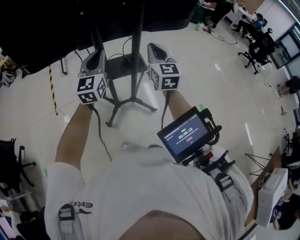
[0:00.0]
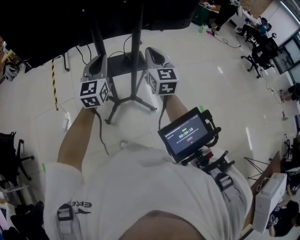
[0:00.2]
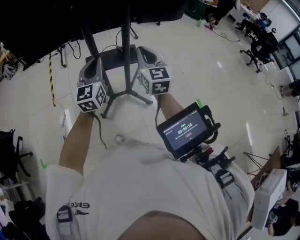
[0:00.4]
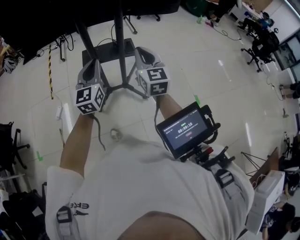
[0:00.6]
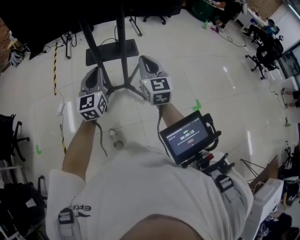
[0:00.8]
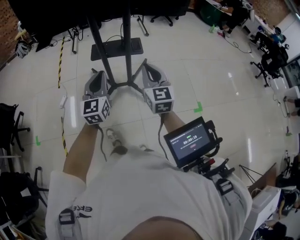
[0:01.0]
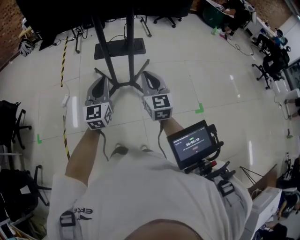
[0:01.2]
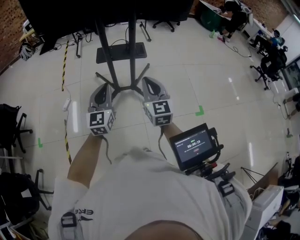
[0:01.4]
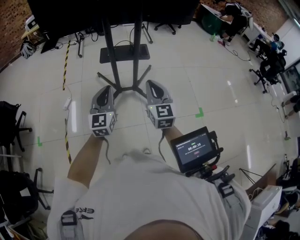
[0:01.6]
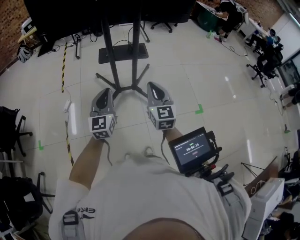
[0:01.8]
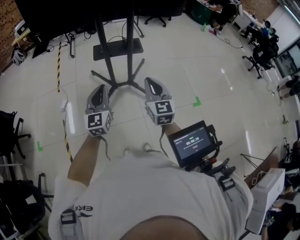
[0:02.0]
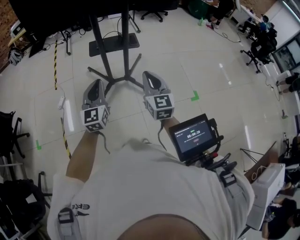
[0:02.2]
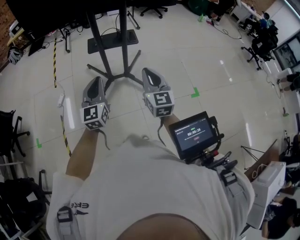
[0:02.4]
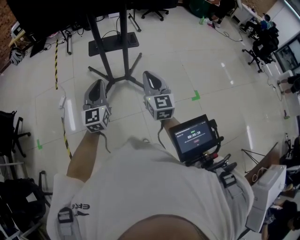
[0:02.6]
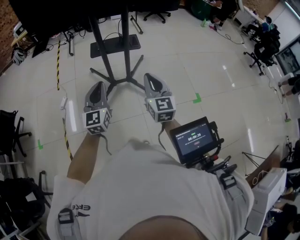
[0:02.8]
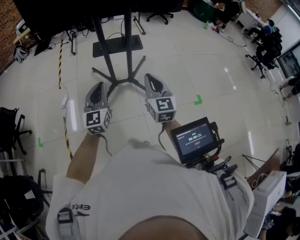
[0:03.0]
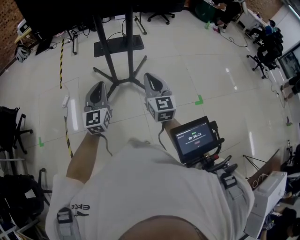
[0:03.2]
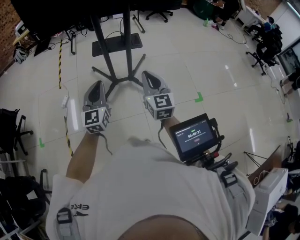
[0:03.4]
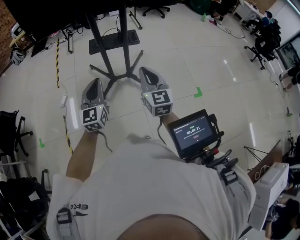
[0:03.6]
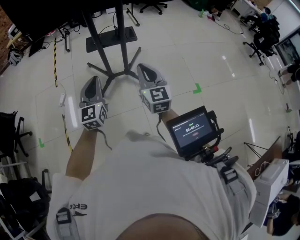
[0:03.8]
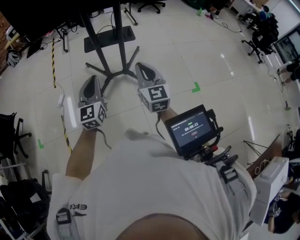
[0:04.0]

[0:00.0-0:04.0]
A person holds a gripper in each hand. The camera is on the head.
0:00.0 to 0:01.4: Both grippers move backward, some 25 cm.
0:01.4 to 0:02.6: Both grippers travel together backward, some 5 cm.
0:02.6 to 0:04.0: There are only small adjustments of the grippers.

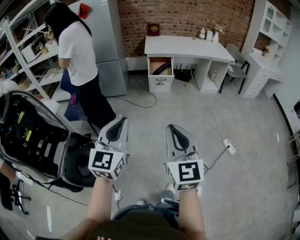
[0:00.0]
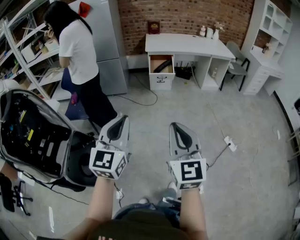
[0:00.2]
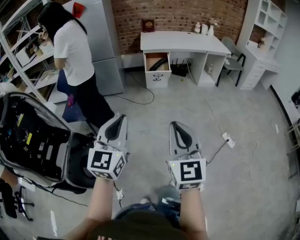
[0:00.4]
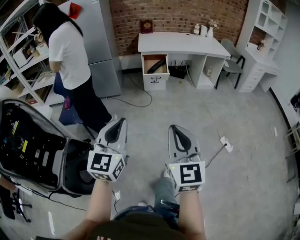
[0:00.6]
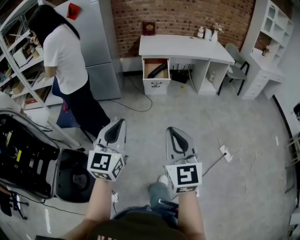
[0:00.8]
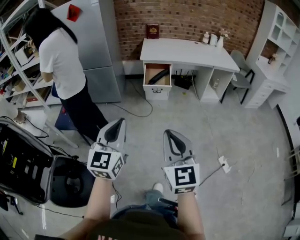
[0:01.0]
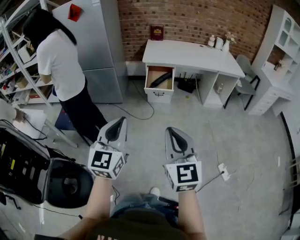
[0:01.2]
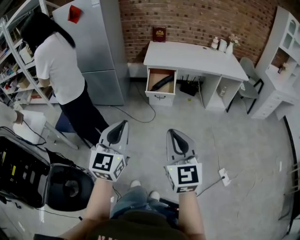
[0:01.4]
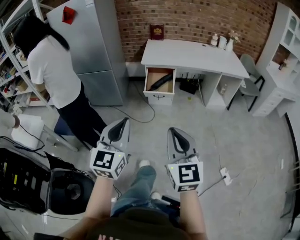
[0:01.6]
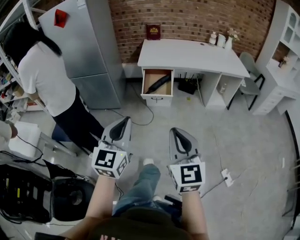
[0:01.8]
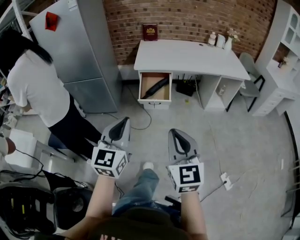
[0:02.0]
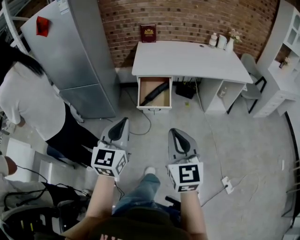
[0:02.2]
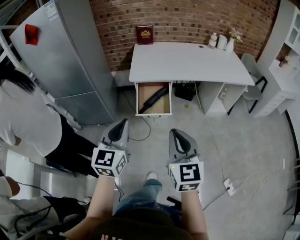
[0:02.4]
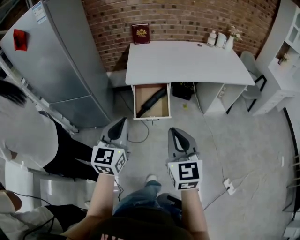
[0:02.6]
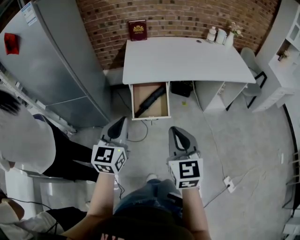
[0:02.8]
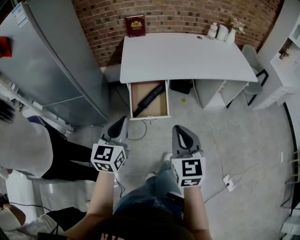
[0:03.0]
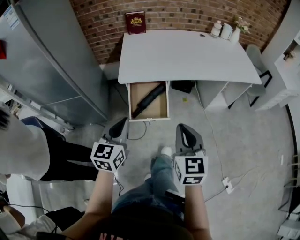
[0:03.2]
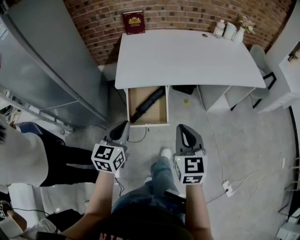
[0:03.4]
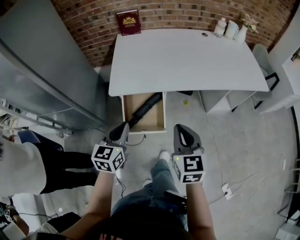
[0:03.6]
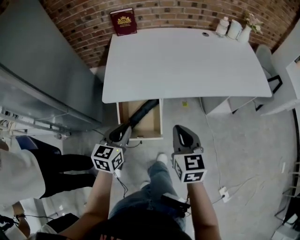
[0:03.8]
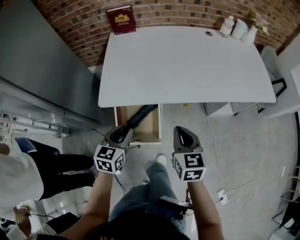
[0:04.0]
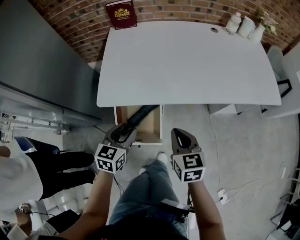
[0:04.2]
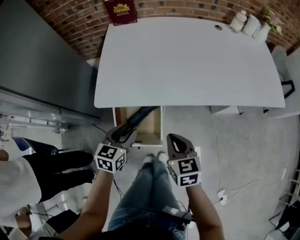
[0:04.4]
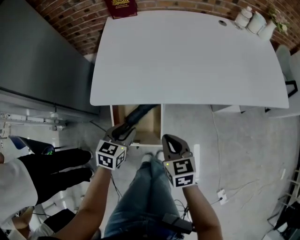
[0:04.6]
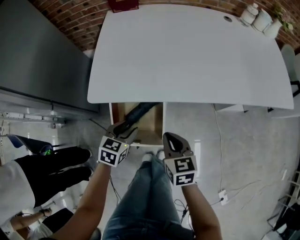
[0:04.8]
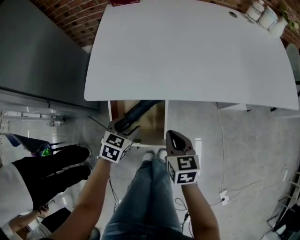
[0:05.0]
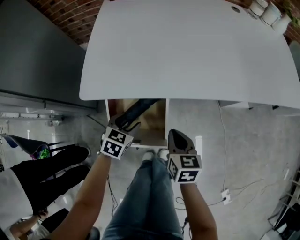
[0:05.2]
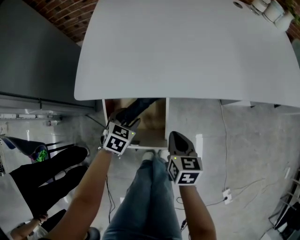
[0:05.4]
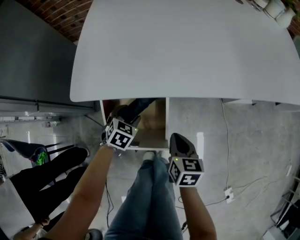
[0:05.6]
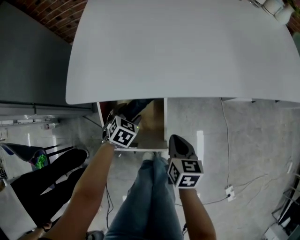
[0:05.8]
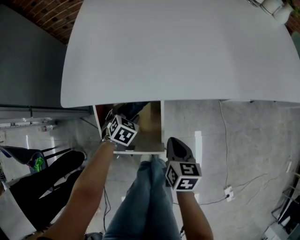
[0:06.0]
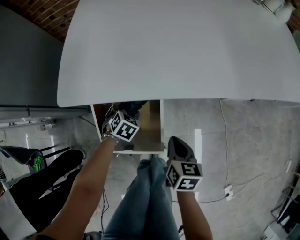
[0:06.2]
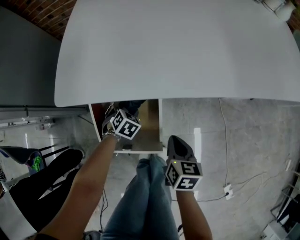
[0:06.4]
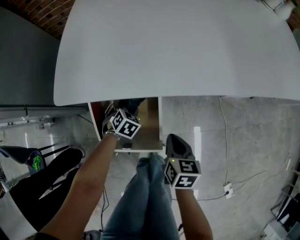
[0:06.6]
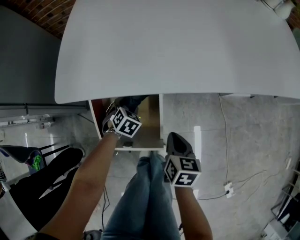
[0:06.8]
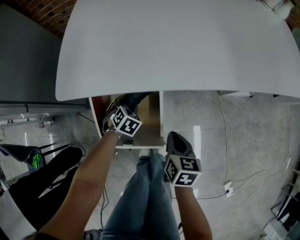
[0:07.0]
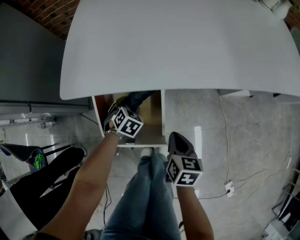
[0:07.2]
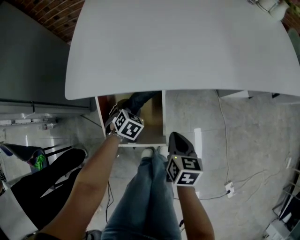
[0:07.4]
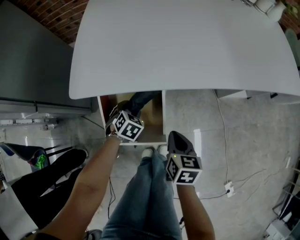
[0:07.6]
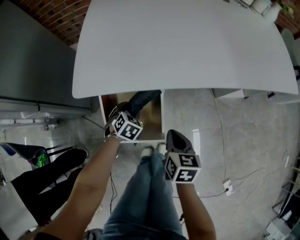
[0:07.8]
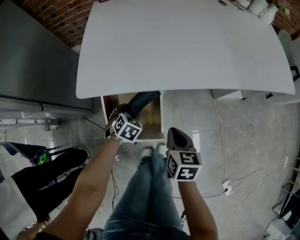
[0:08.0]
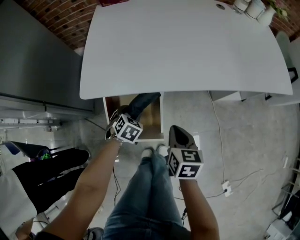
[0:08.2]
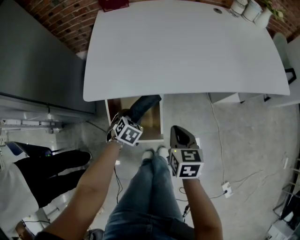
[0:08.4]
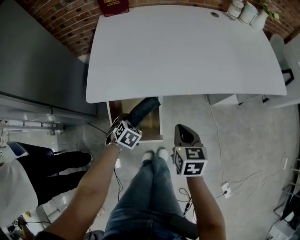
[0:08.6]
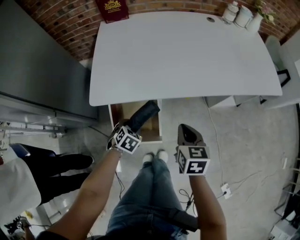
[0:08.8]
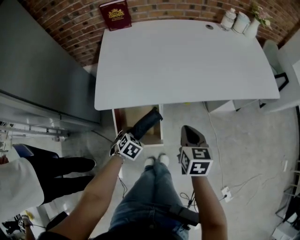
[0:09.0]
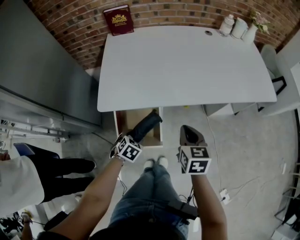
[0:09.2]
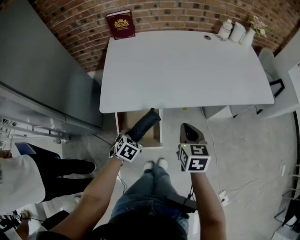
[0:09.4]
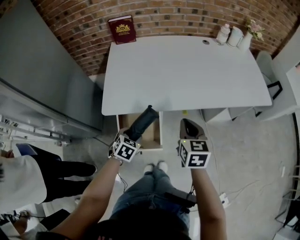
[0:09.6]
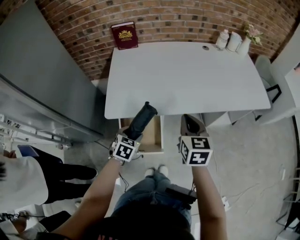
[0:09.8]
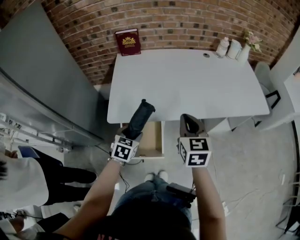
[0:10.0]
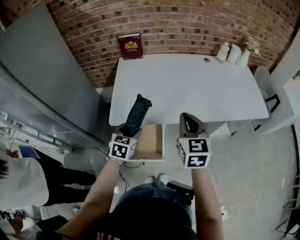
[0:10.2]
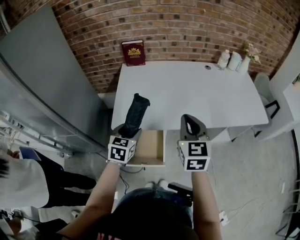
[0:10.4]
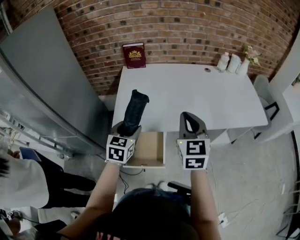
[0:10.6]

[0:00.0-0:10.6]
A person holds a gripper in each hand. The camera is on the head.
0:00.0 to 0:01.6: The two grippers go approximately 30 cm forward.
0:01.6 to 0:03.0: Both grippers are carried forward, some 50 cm.
0:03.0 to 0:04.6: The two grippers go some 40 cm forward and downward. The left gripper swivels some 30 degrees, and opens its fingers; the right gripper changes its angle by approximately 30 degrees.
0:04.6 to 0:06.0: The two grippers go about 20 cm downward. The right gripper swivels about 30 degrees. The left gripper swivels roughly 30 degrees, and opens.
0:06.0 to 0:07.6: The grippers stay close to where they were, moving slightly.
0:07.6 to 0:09.0: The left gripper goes some 15 cm upward and backward. The right gripper travels upward by about 20 cm.
0:09.0 to 0:10.6: Both grippers travel together upward, roughly 25 cm. The left gripper points its fingers about 40 degrees further upward. Meanwhile the right gripper changes its angle by roughly 30 degrees.

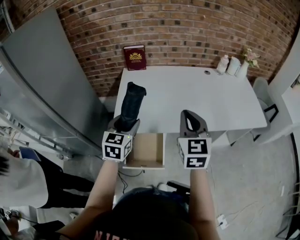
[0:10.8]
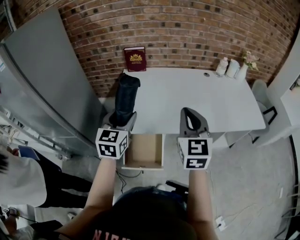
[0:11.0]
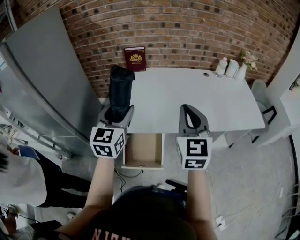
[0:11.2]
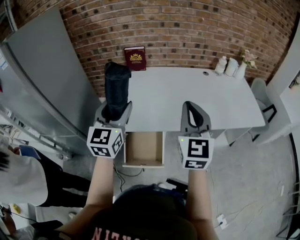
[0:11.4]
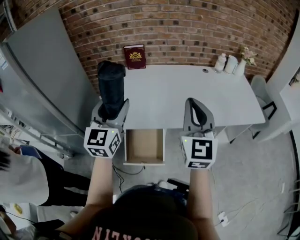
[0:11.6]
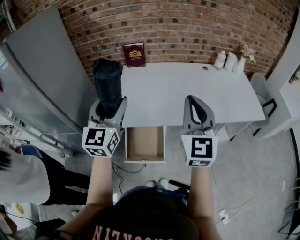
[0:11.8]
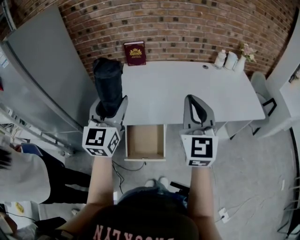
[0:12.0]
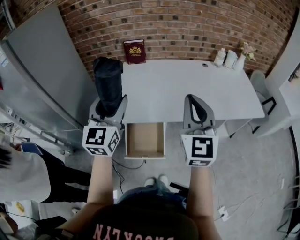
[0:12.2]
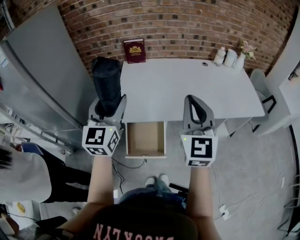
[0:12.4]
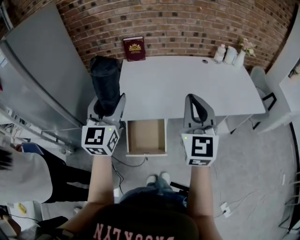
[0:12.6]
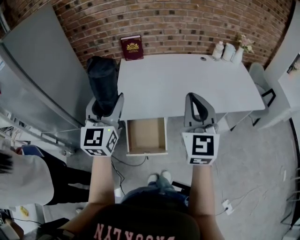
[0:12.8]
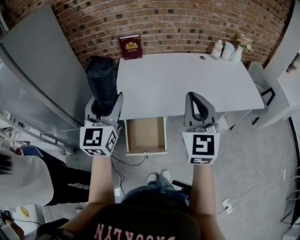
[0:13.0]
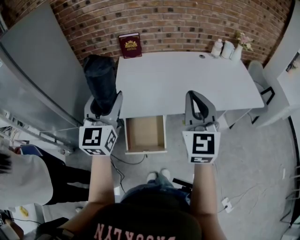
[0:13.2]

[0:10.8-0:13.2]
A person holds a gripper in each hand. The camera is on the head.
0:10.8 to 0:12.0: The right gripper heads upward and backward, covering roughly 10 cm. Meanwhile the left gripper goes about 15 cm upward, and turns by some 30 degrees.
0:12.0 to 0:13.2: The grippers move only a little.

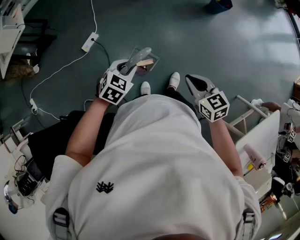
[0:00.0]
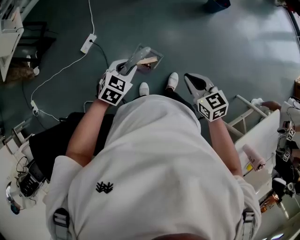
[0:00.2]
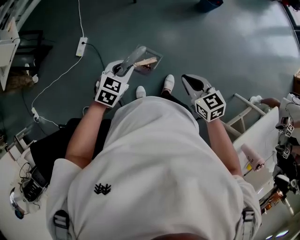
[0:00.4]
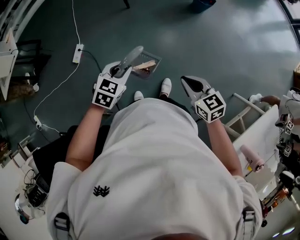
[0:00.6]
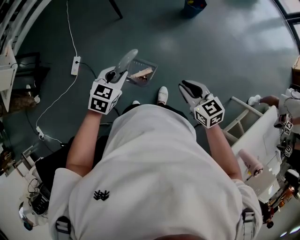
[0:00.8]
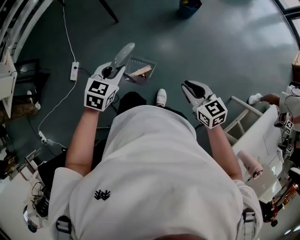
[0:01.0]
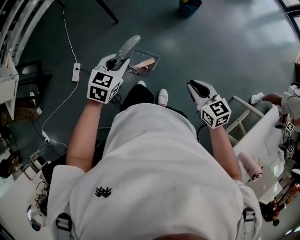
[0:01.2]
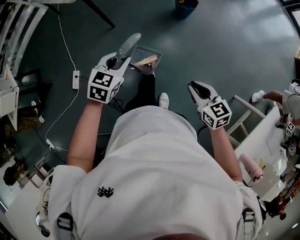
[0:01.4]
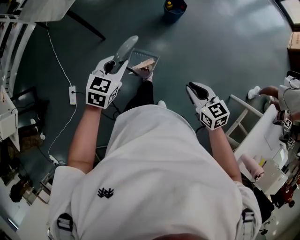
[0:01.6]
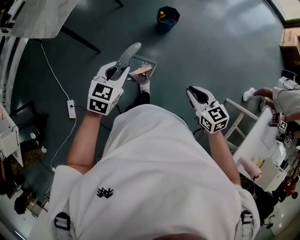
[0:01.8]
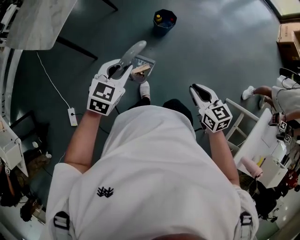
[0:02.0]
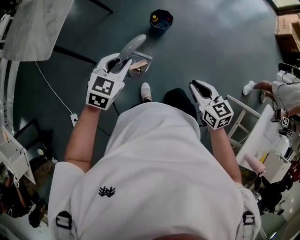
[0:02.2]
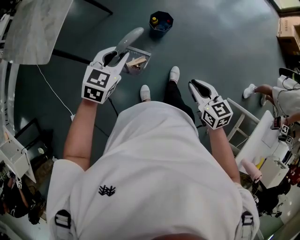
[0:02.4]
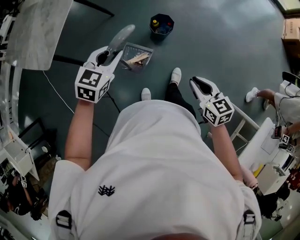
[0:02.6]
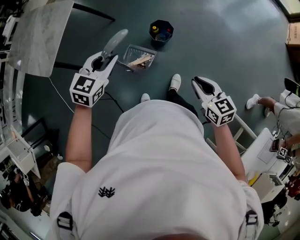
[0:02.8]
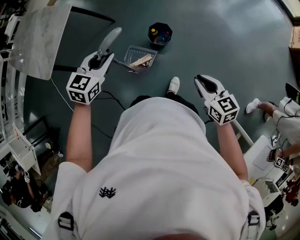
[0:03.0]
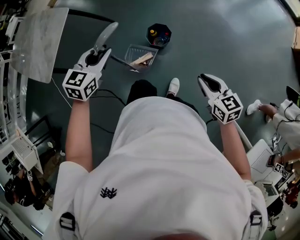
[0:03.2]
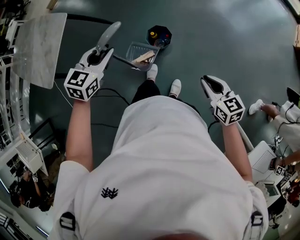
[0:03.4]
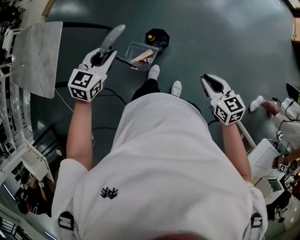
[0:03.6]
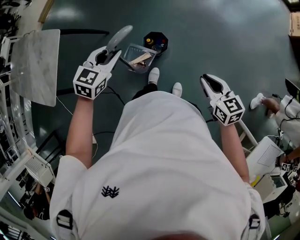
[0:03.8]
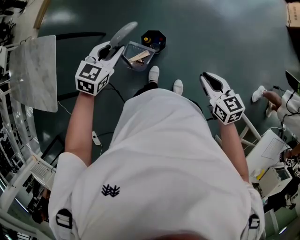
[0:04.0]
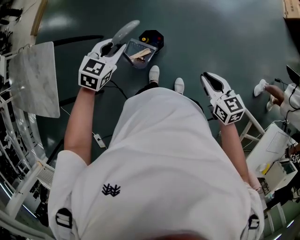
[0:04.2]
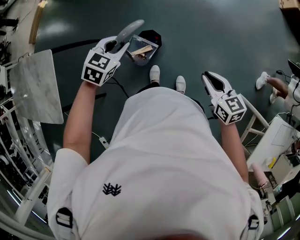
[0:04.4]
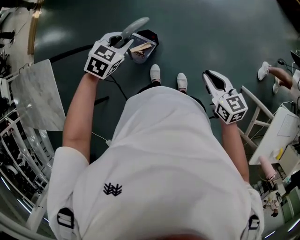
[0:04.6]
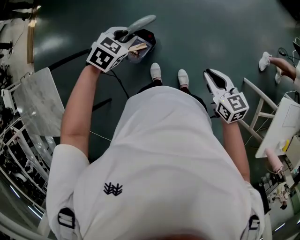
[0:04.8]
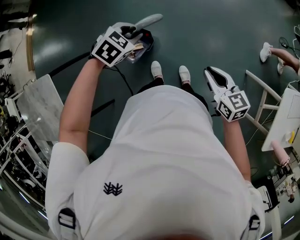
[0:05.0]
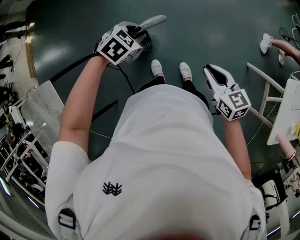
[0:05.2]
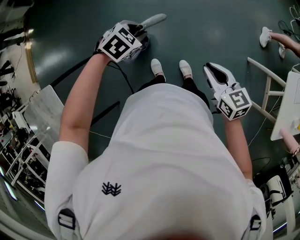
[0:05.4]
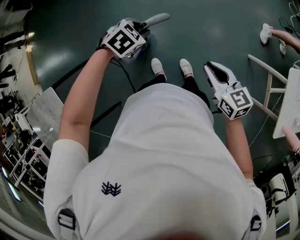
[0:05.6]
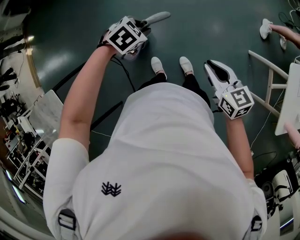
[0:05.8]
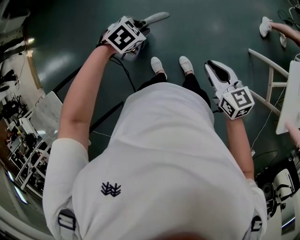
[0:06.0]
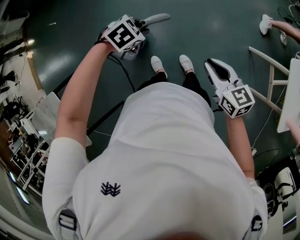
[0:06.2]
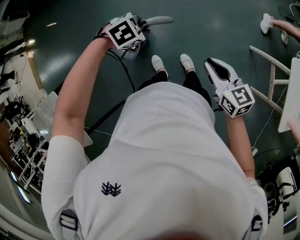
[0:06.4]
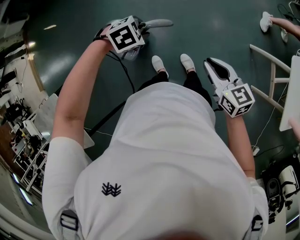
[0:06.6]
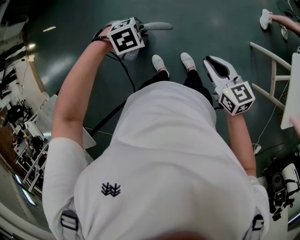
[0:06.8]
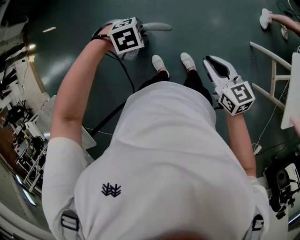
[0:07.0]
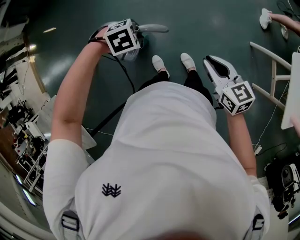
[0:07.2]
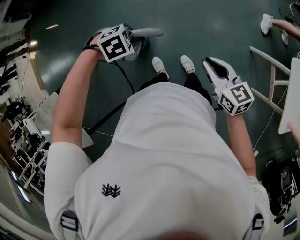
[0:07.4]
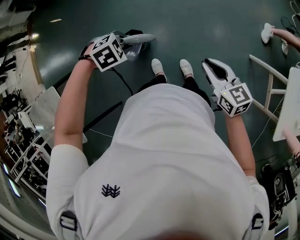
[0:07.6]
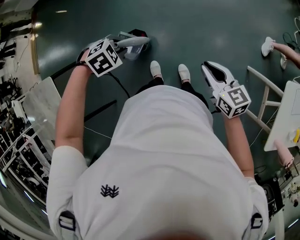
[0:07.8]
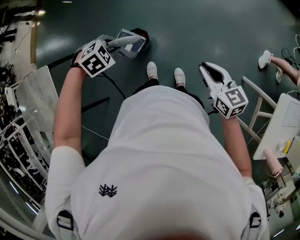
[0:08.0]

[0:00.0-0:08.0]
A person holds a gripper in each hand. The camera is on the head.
0:00.0 to 0:01.6: The right gripper heads to the right and forward, covering some 35 cm, and rotates roughly 20 degrees. Meanwhile the left gripper travels forward and to the right by roughly 40 cm.
0:01.6 to 0:03.2: The two grippers travel together, forward, roughly 40 cm.
0:03.2 to 0:04.8: The right gripper swivels approximately 30 degrees; the left gripper changes place by roughly 30 cm, and rotates some 50 degrees.
0:04.8 to 0:06.4: The left gripper changes place by roughly 20 cm, and swivels some 40 degrees, while the right gripper ends up roughly 10 cm from where it was.
0:06.4 to 0:08.0: The left gripper shifts by about 20 cm, and rotates approximately 20 degrees.
